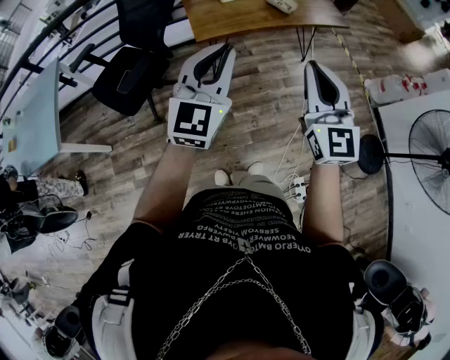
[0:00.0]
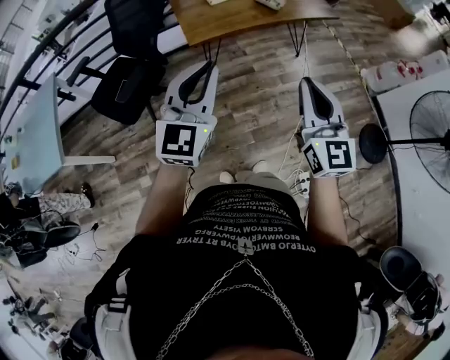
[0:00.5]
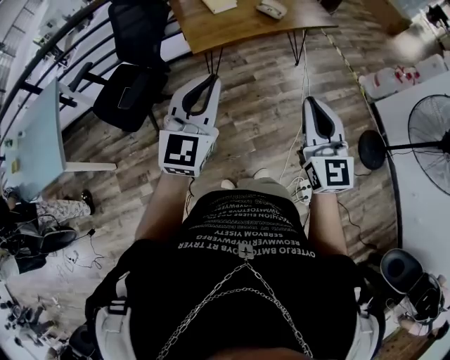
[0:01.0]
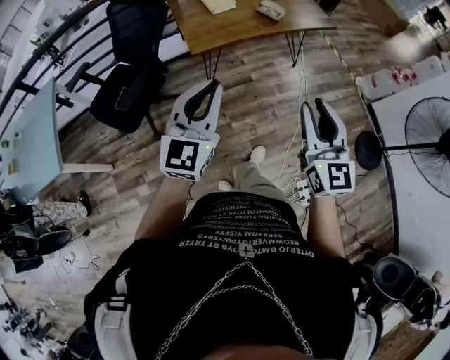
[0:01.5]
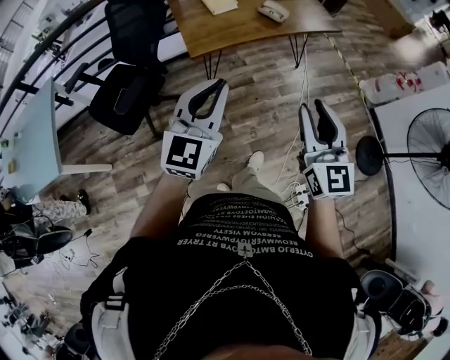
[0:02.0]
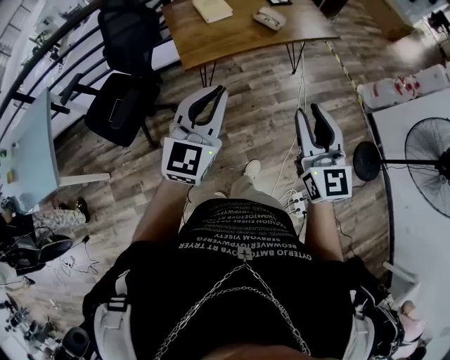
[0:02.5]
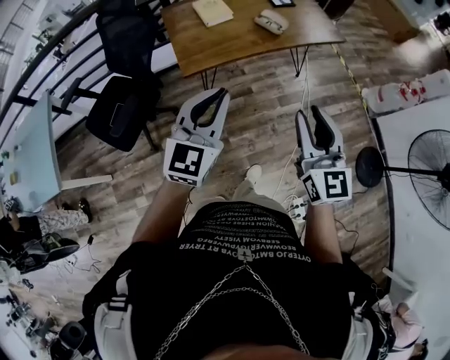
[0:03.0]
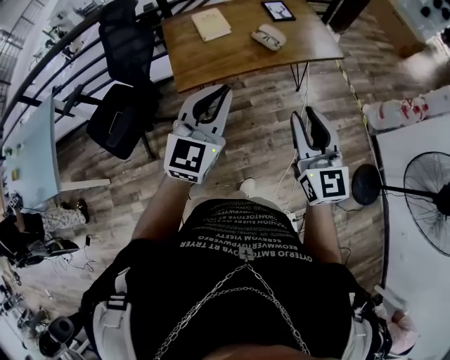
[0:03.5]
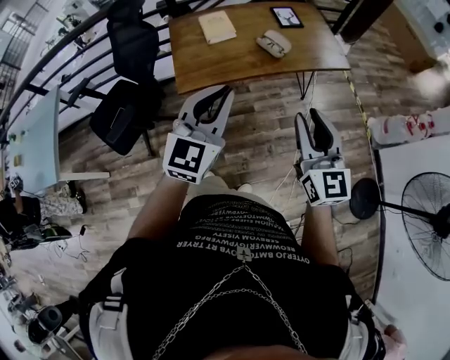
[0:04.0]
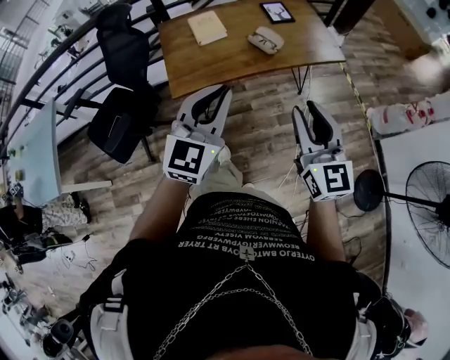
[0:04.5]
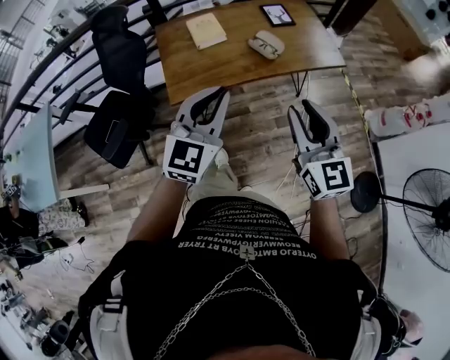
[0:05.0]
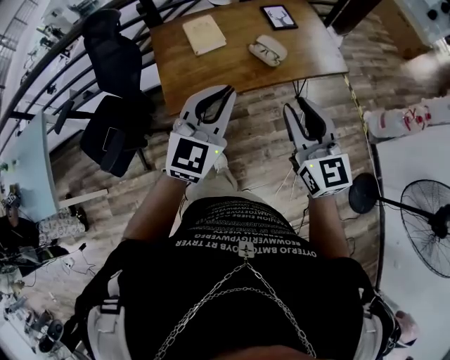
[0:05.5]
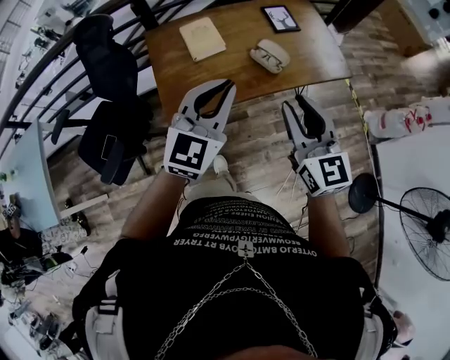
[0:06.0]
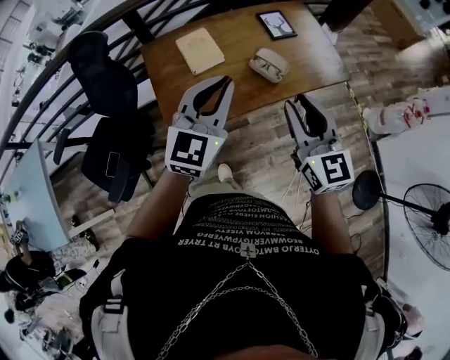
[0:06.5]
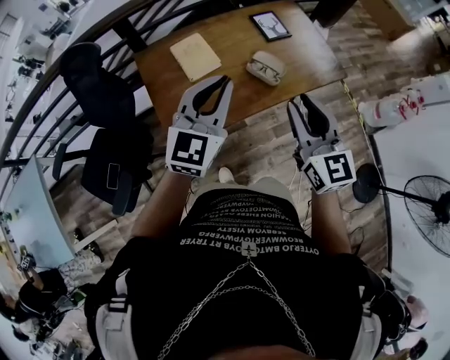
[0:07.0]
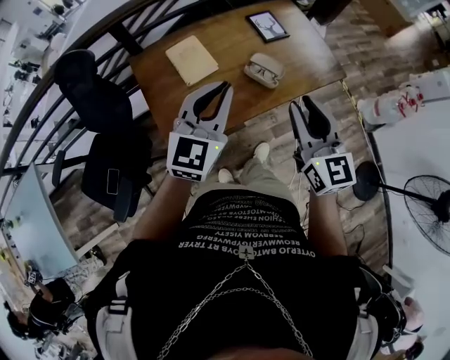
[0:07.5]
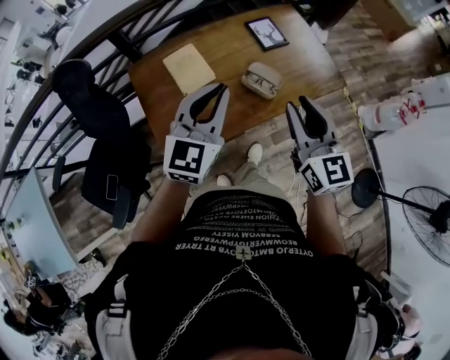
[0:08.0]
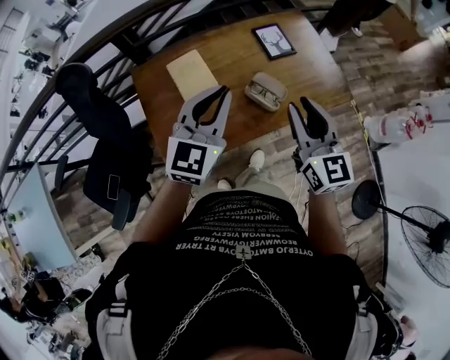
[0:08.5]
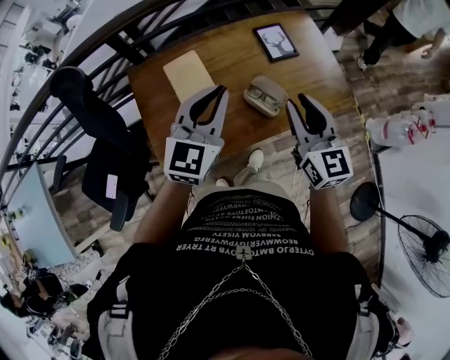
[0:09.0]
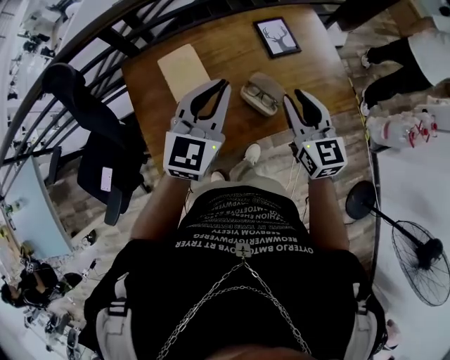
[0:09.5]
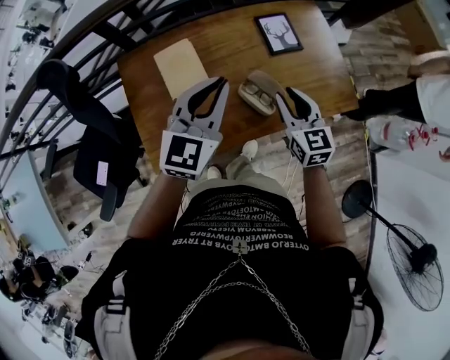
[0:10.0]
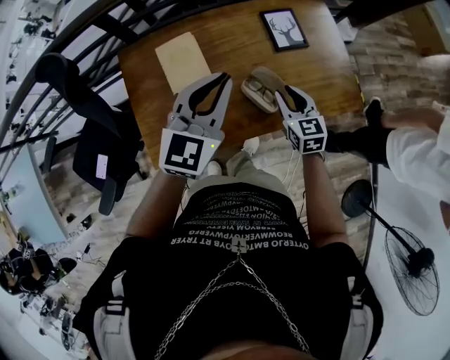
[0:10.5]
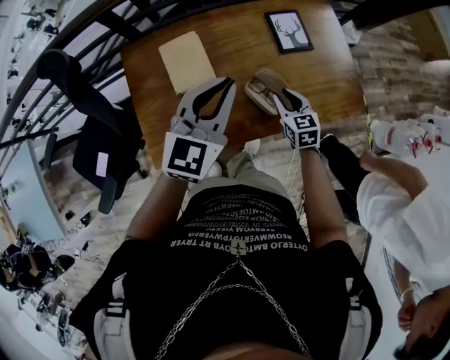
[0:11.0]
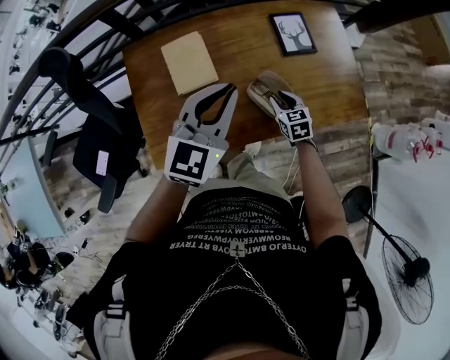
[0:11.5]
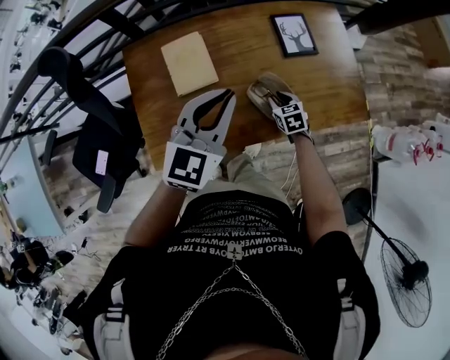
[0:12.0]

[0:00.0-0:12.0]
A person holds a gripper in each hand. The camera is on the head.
0:00.0 to 0:02.0: The right gripper opens.
0:02.0 to 0:04.0: The grippers both shift forward and to the right by about 25 cm.
0:04.0 to 0:06.0: Both grippers travel together forward, about 20 cm.
0:06.0 to 0:08.0: Both grippers move forward, roughly 15 cm.
0:08.0 to 0:10.0: The right gripper moves forward and downward, some 25 cm, and changes its angle by about 20 degrees. The left gripper heads forward and downward, covering about 15 cm.
0:10.0 to 0:12.0: The right gripper heads downward, covering roughly 25 cm, and changes its angle by some 30 degrees.

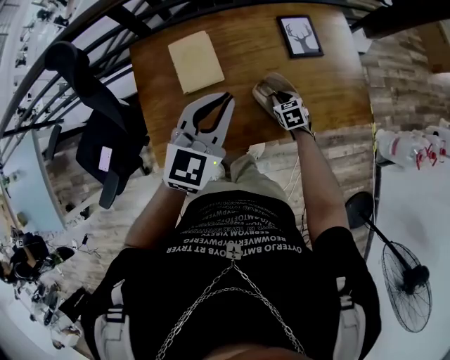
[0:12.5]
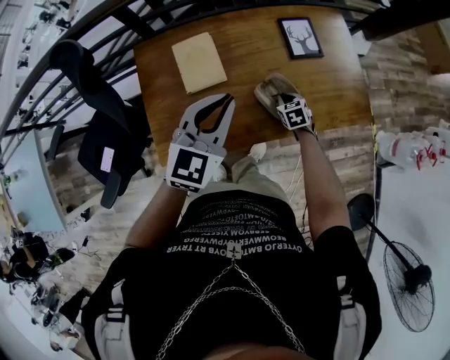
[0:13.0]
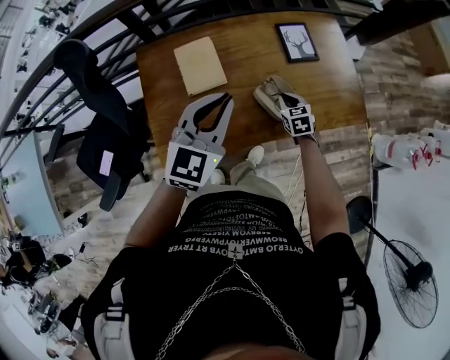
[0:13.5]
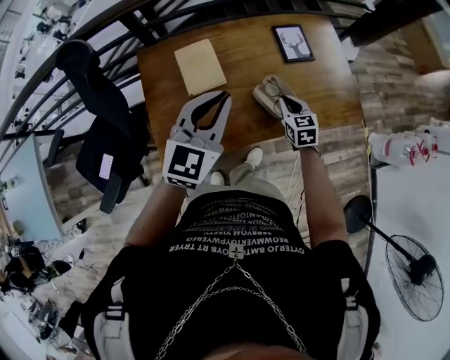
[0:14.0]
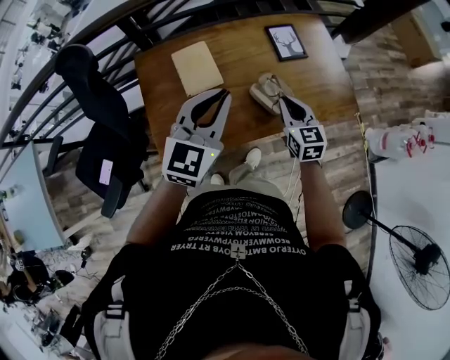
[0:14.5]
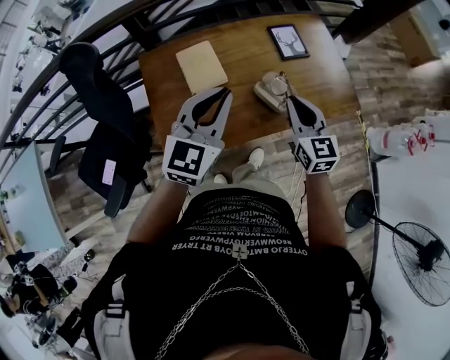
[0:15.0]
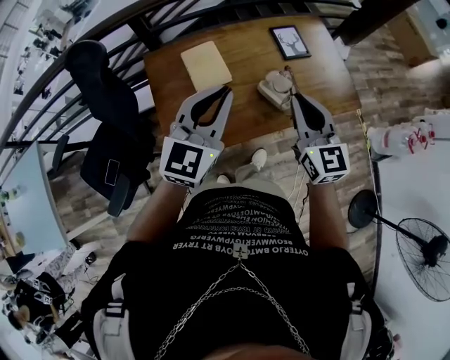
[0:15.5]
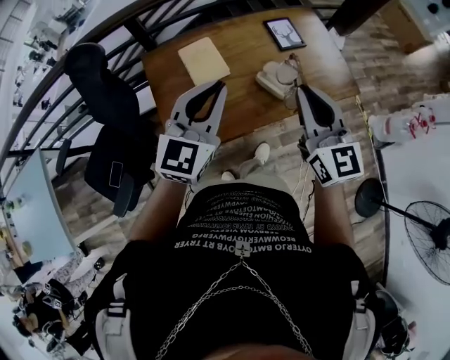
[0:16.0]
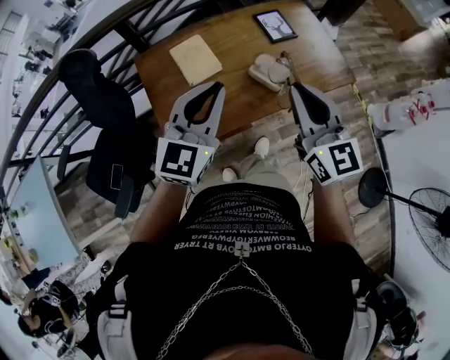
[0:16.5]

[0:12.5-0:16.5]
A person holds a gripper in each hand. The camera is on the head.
0:12.5 to 0:14.5: The right gripper travels upward by some 25 cm, and angles its fingers upward, by approximately 30 degrees. The left gripper heads upward and backward, covering approximately 10 cm.
0:14.5 to 0:16.5: The left gripper shifts roughly 10 cm backward, while the right gripper moves upward and backward, about 25 cm, and rotates about 20 degrees.

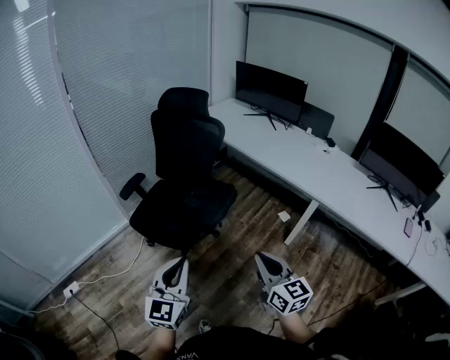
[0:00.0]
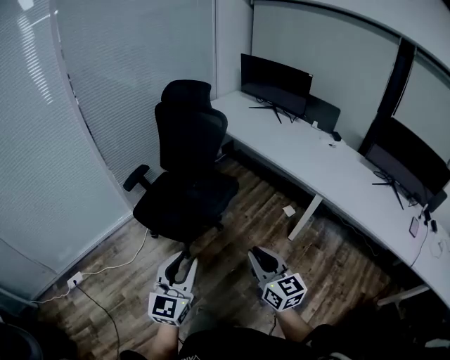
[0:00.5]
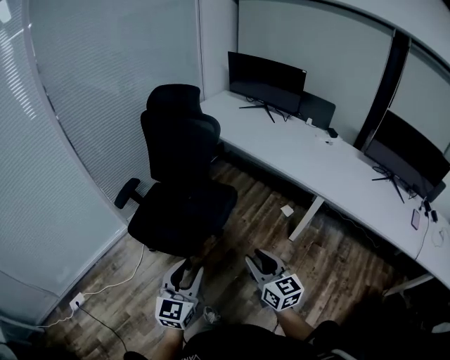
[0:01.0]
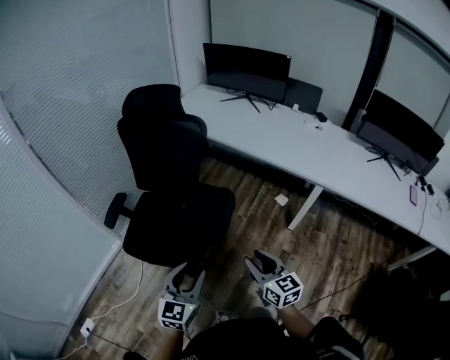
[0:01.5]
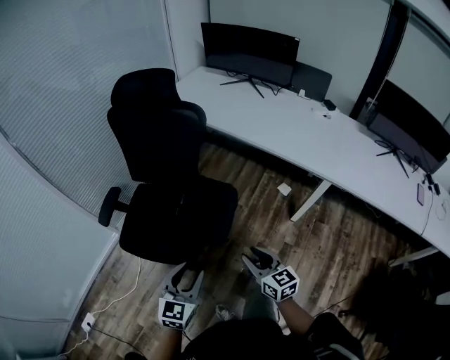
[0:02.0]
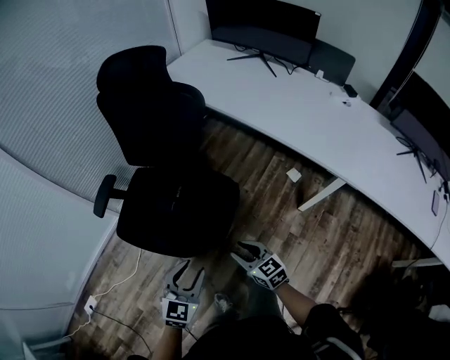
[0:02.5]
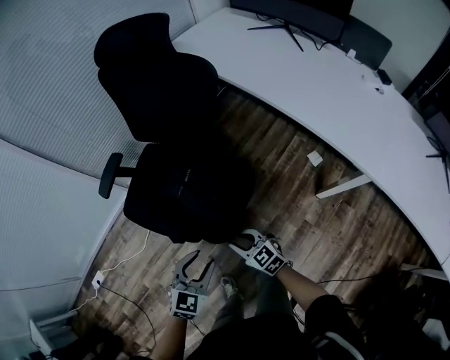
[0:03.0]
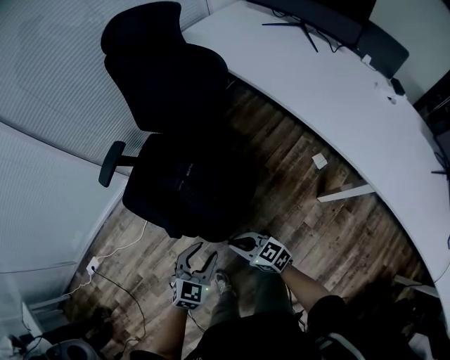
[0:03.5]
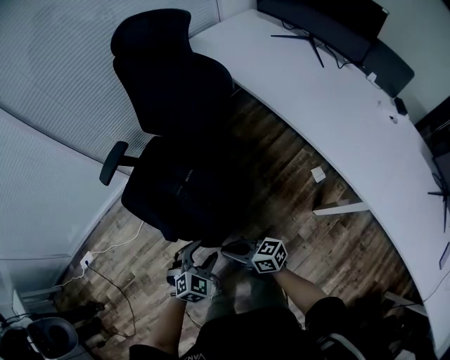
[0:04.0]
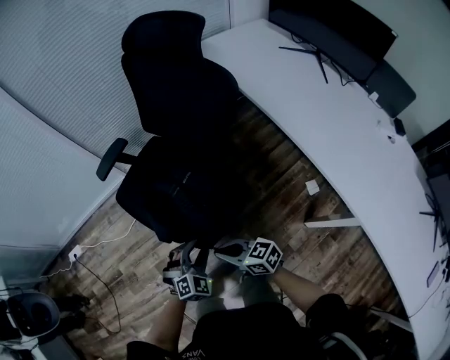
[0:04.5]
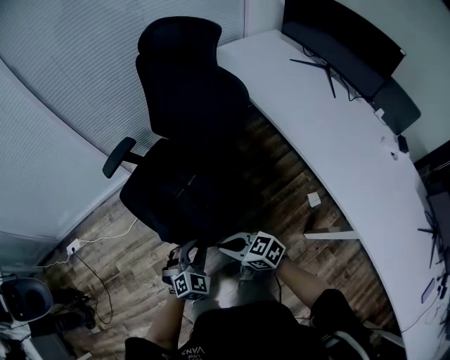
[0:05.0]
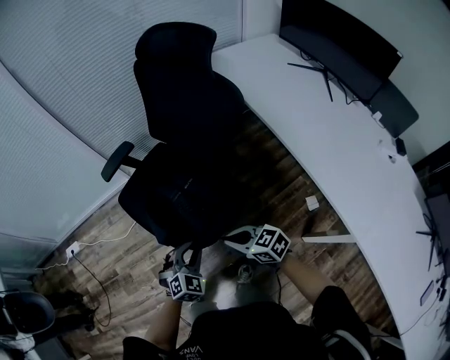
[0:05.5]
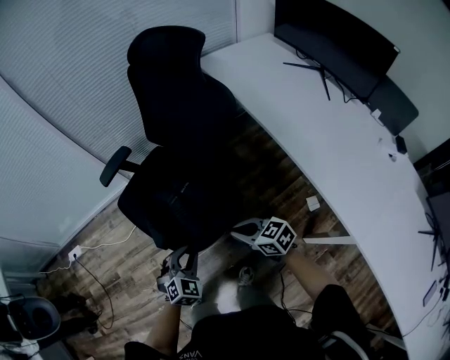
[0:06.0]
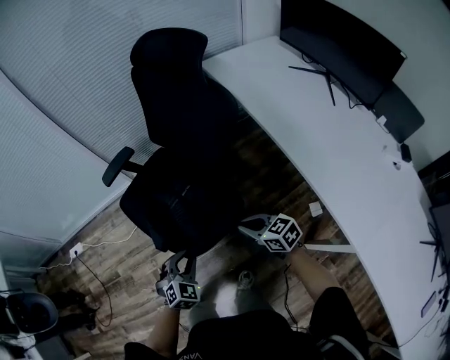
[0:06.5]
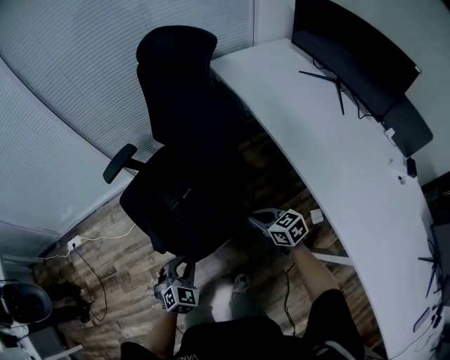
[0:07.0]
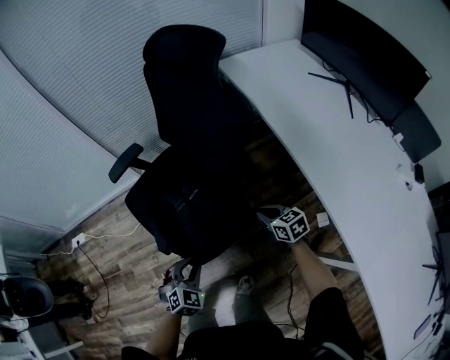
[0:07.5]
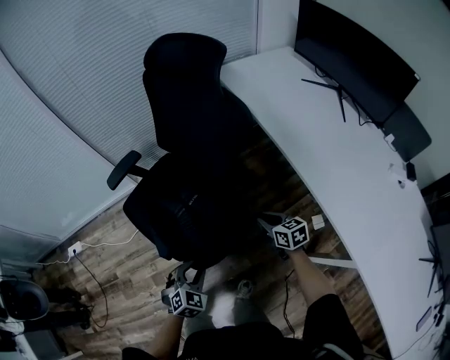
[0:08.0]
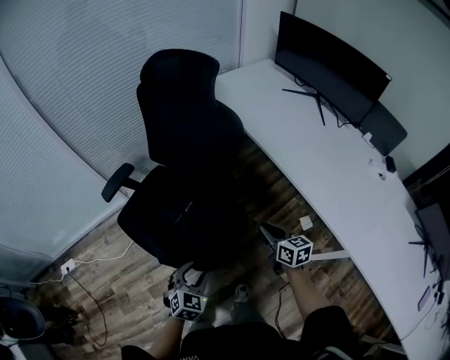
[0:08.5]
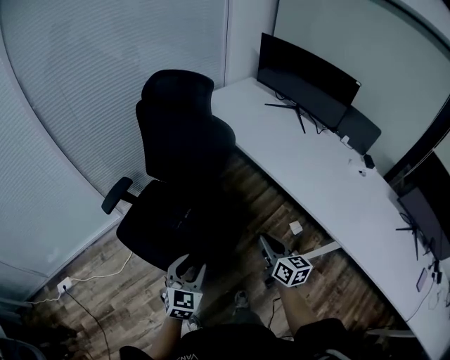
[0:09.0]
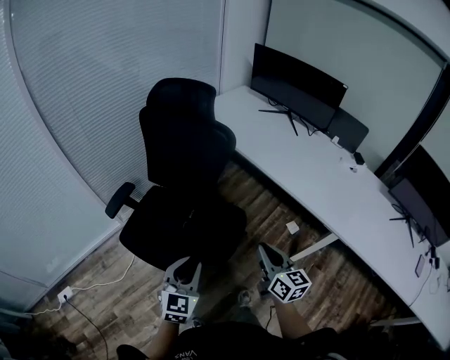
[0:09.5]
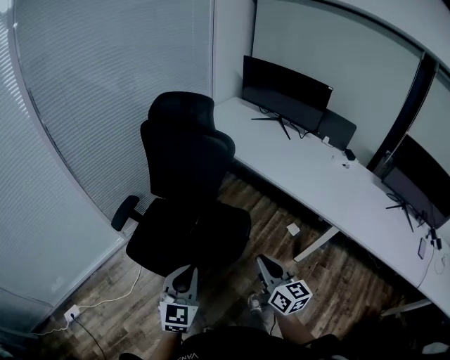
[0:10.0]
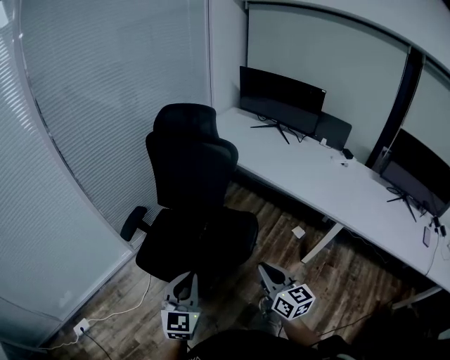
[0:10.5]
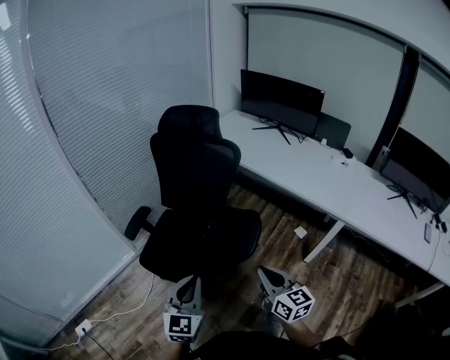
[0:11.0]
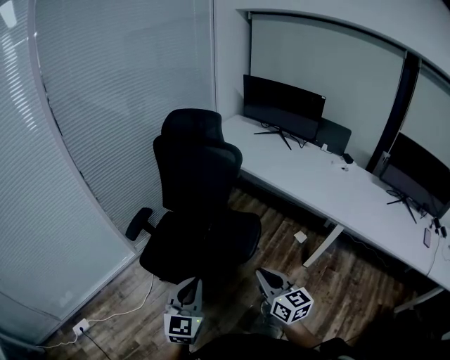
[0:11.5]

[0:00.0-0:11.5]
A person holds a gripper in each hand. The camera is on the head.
0:00.0 to 0:02.0: Both grippers travel together forward and downward, some 30 cm. The right gripper opens. The left gripper swivels approximately 30 degrees, and opens up.
0:02.0 to 0:04.0: Both grippers move downward, some 15 cm. The right gripper swivels approximately 60 degrees, while the left gripper swivels approximately 30 degrees.
0:04.0 to 0:06.0: The left gripper ends up approximately 5 cm from where it was, rotates about 20 degrees, and closes up. The right gripper shifts some 15 cm to the right and forward, and swivels some 30 degrees.
0:06.0 to 0:07.5: The right gripper heads to the right, forward and downward, covering roughly 15 cm.
0:07.5 to 0:09.5: The right gripper ends up roughly 35 cm from where it was, and rotates some 50 degrees. Meanwhile the left gripper travels upward by roughly 20 cm, tips its fingers upward by about 30 degrees, and opens, then closes again.
0:09.5 to 0:11.5: The right gripper heads backward and to the left, covering some 20 cm. The left gripper shifts some 20 cm backward, to the left and upward.
